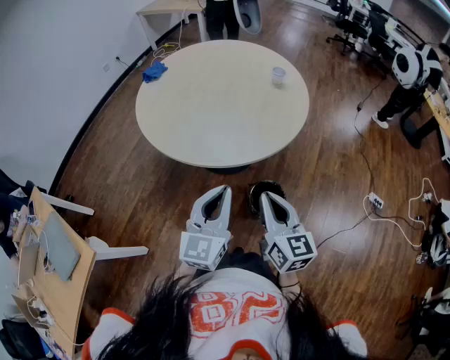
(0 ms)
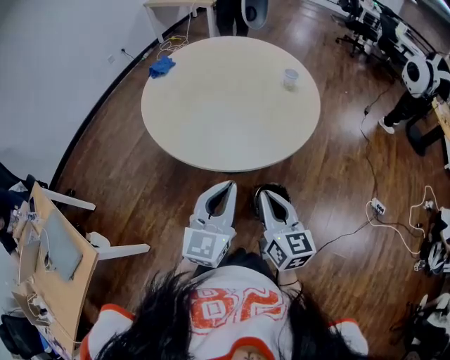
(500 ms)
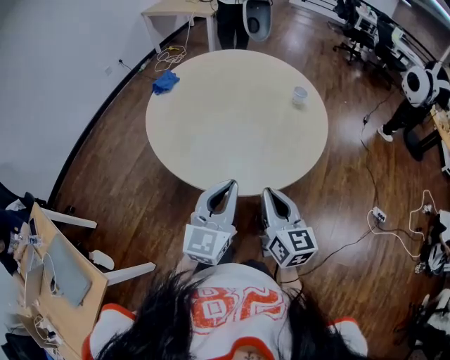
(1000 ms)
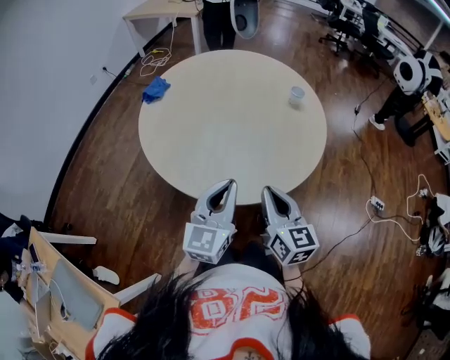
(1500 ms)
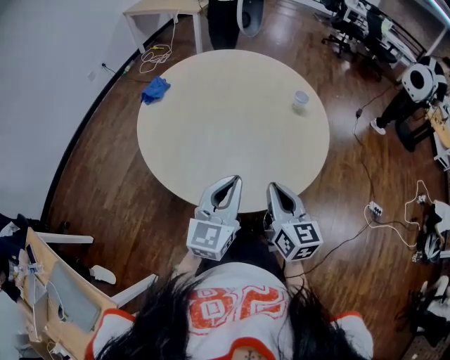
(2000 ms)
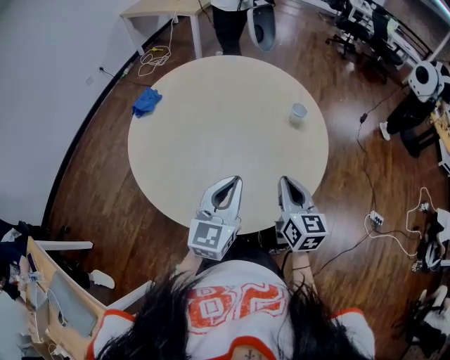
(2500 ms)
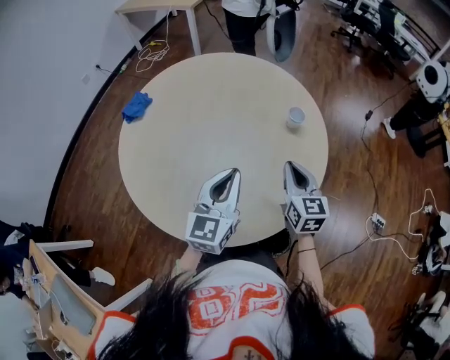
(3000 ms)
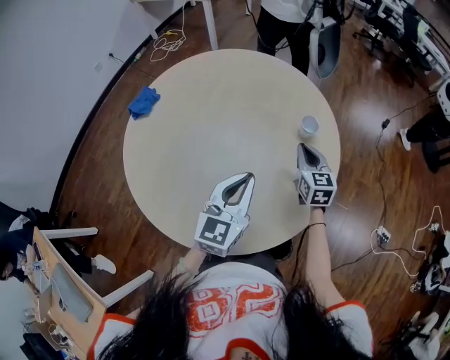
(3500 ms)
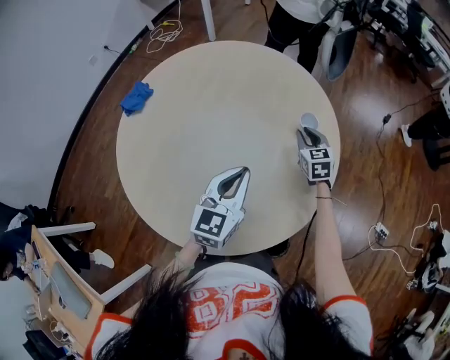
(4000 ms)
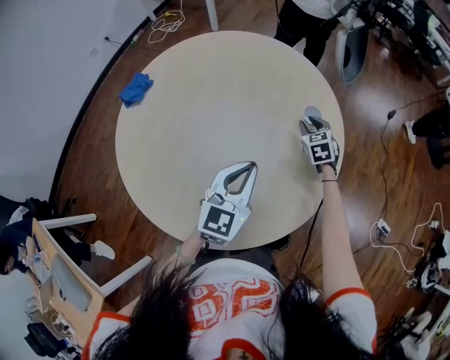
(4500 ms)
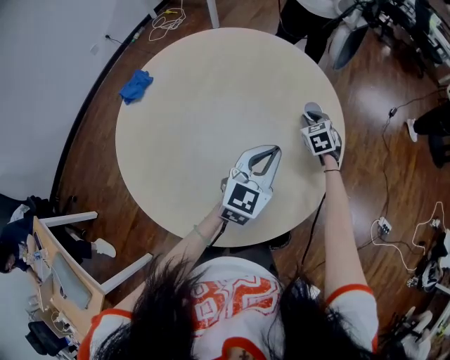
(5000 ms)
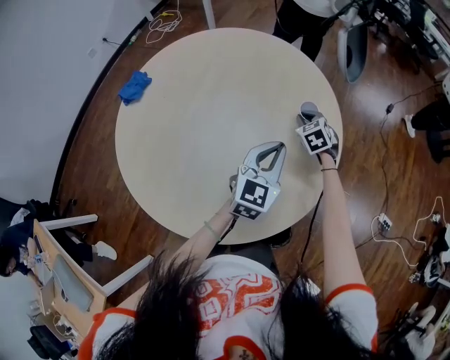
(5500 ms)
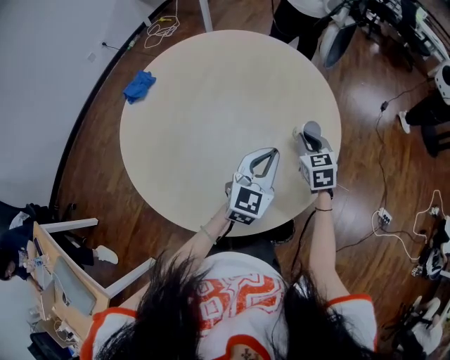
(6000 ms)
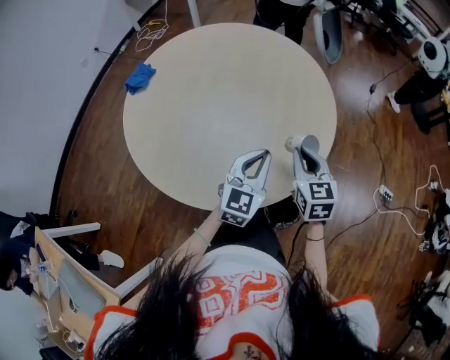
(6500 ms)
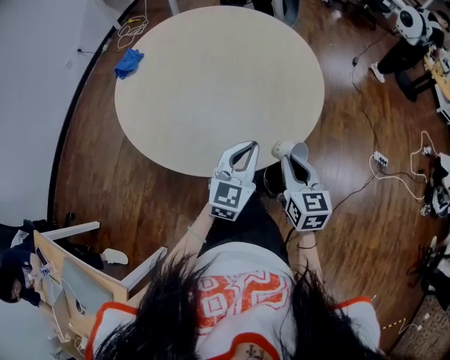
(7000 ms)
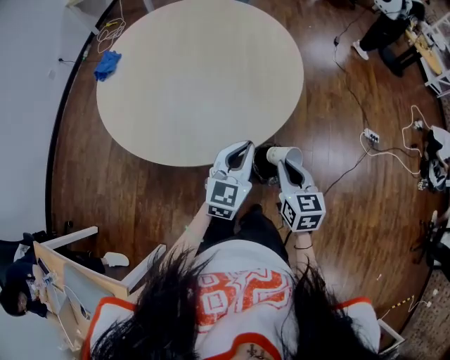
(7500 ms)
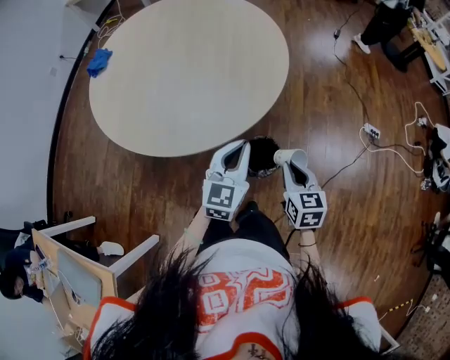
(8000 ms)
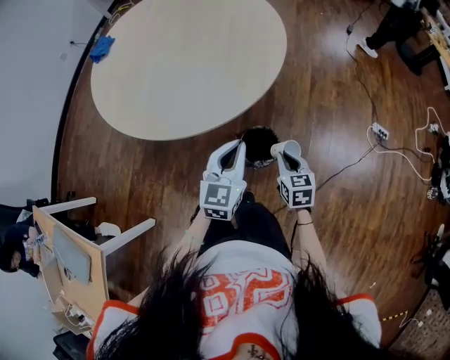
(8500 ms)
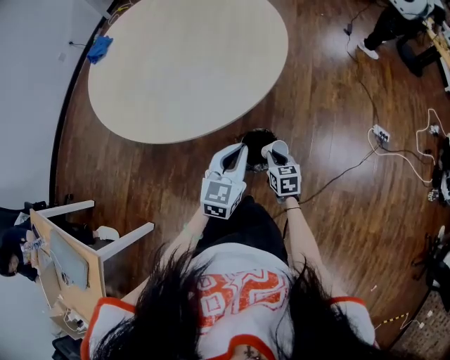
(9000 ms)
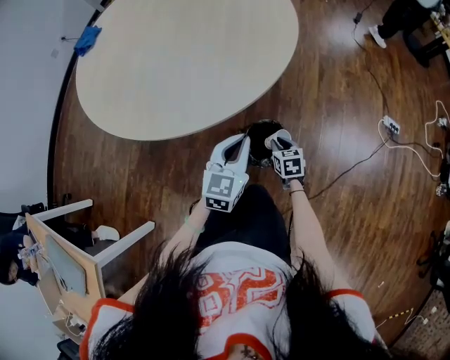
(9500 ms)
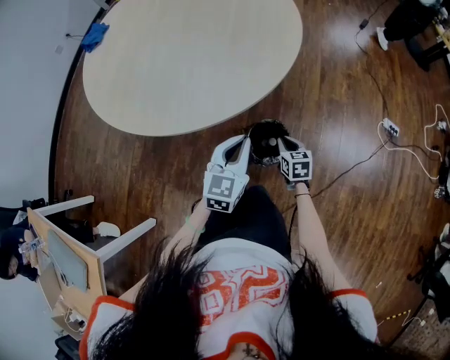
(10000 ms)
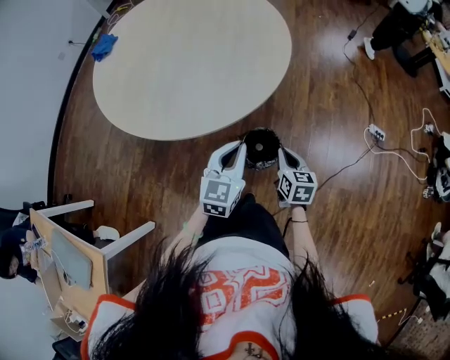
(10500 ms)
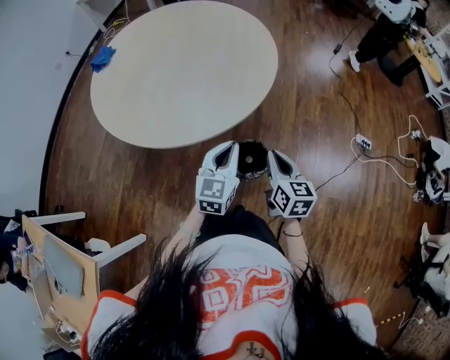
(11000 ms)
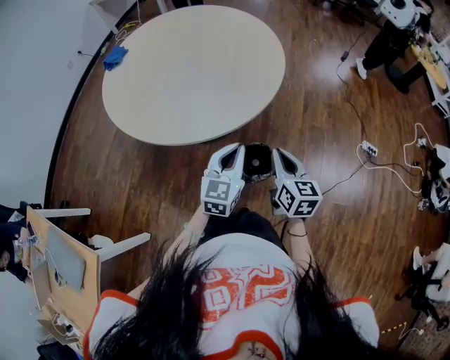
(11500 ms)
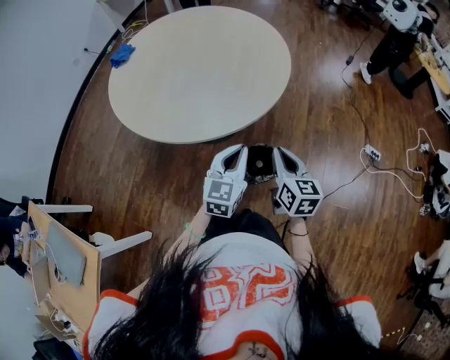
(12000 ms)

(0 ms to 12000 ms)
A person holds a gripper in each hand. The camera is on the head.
0 ms - 2000 ms: The two grippers go about 20 cm forward and to the left.
2000 ms - 4000 ms: The right gripper travels forward by roughly 40 cm, and changes its angle by approximately 30 degrees; the left gripper moves forward and to the right, some 20 cm.
4000 ms - 6000 ms: The left gripper is displaced to the right by approximately 5 cm; the right gripper heads backward, covering some 10 cm.
6000 ms - 8000 ms: The left gripper moves backward, roughly 25 cm. Meanwhile the right gripper heads backward, covering about 40 cm, and swivels about 30 degrees.
8000 ms - 10000 ms: The left gripper goes roughly 10 cm downward; the right gripper shifts roughly 25 cm downward.
10000 ms - 12000 ms: The right gripper heads upward, covering about 30 cm, and rotates approximately 30 degrees. The left gripper travels upward by roughly 10 cm.

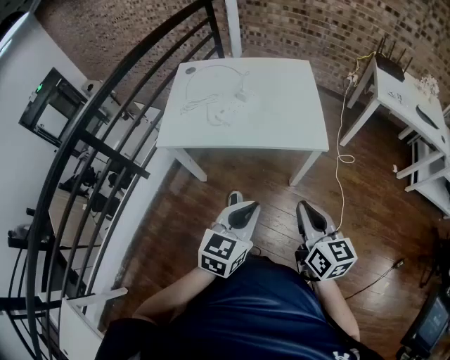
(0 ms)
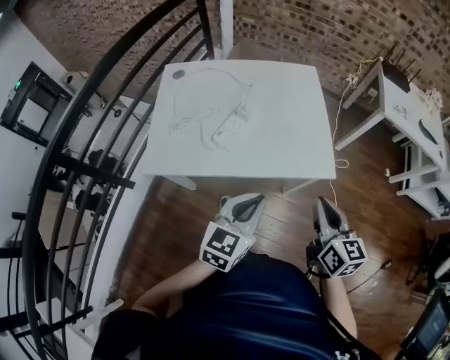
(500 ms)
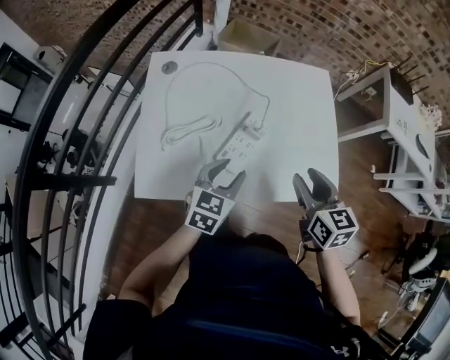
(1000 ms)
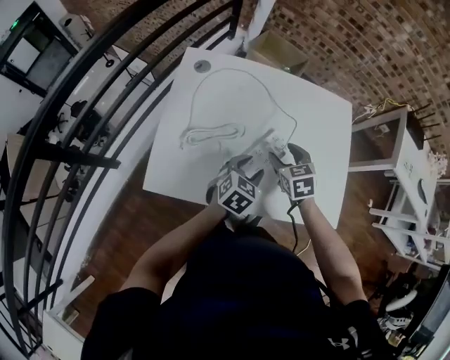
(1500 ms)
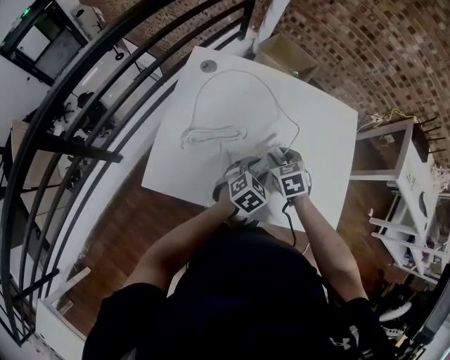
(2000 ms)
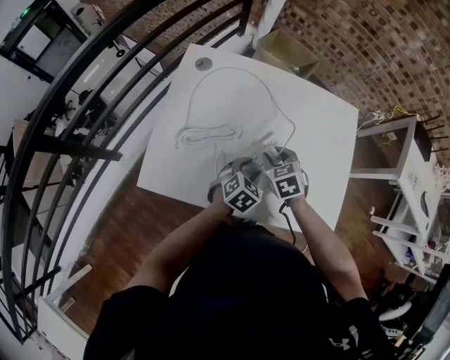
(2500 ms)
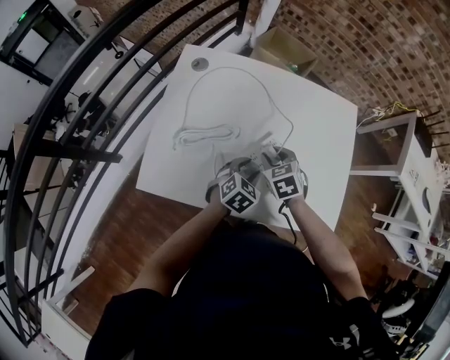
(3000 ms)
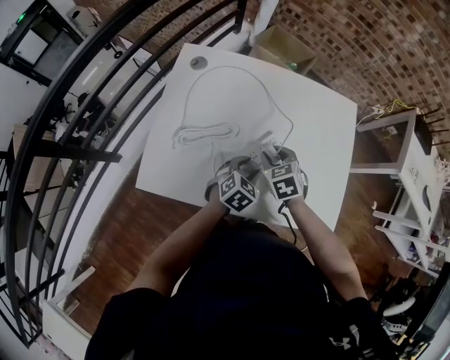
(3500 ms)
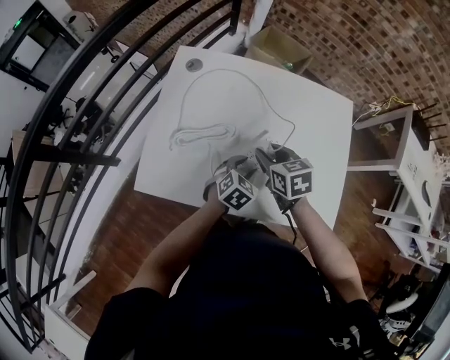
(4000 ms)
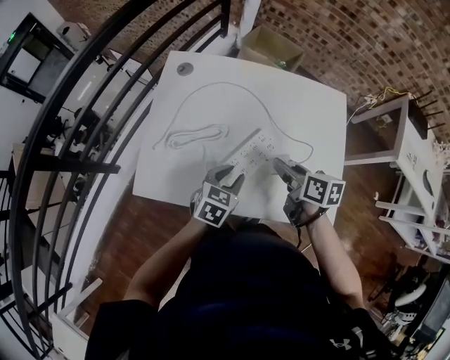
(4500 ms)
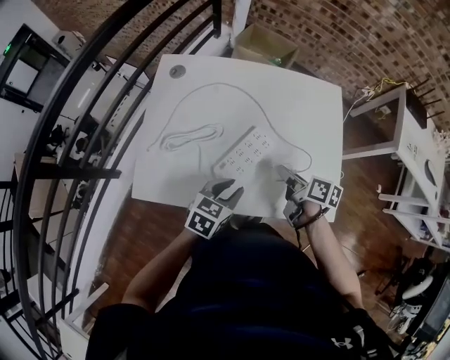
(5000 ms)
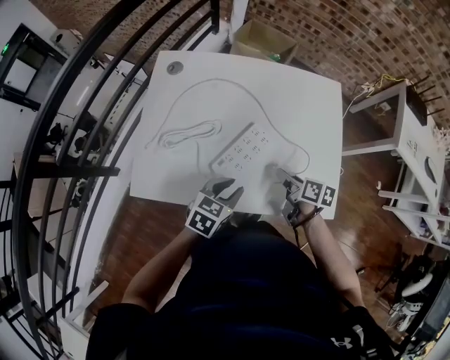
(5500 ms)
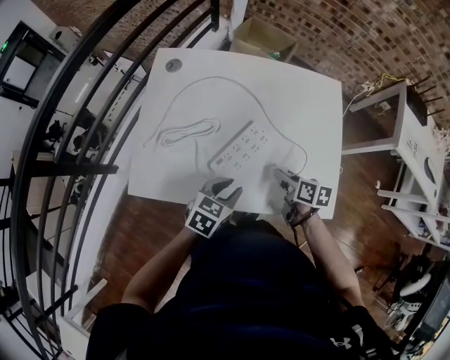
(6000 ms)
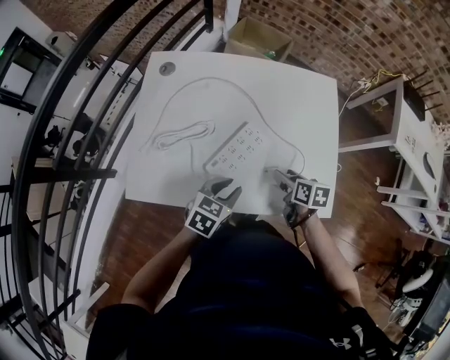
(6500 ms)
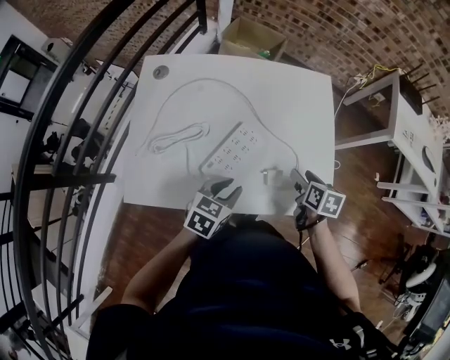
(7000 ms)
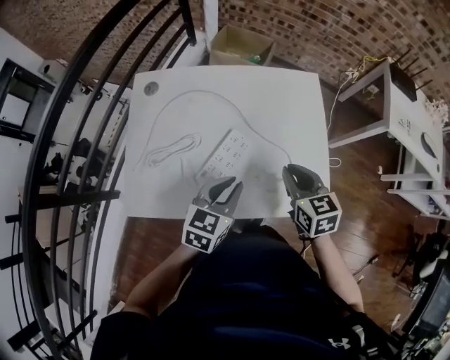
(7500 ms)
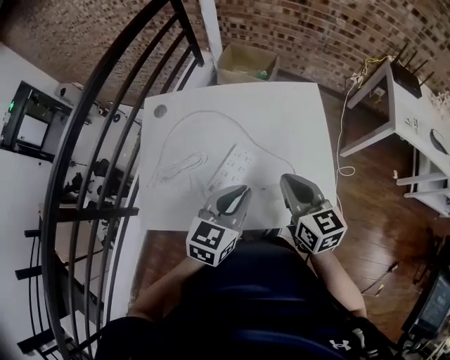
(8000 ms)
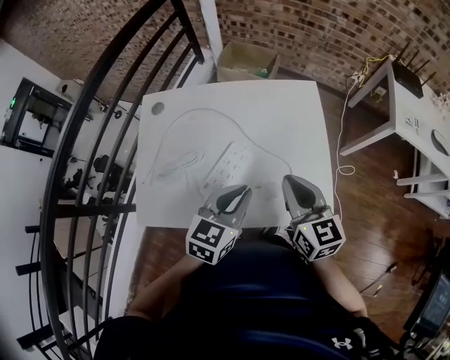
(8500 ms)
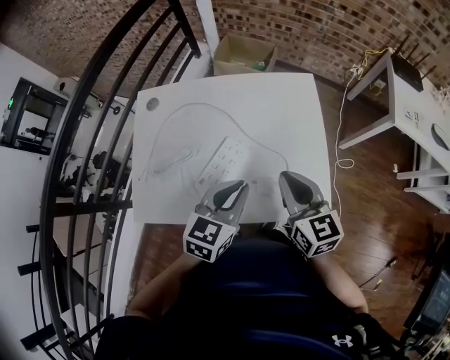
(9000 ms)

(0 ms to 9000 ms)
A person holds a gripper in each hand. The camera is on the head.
0 ms - 2000 ms: Both grippers are carried forward and to the left, some 50 cm. Both grippers travel together downward, approximately 20 cm. The right gripper tilts its fingers some 40 degrees downward, and opens up; the left gripper swivels about 30 degrees, and opens.
2000 ms - 4500 ms: The left gripper ends up some 5 cm from where it was; the right gripper heads upward and to the right, covering some 10 cm, and rolls clockwise, seen from behind, by about 50 degrees.
4500 ms - 7000 ms: The right gripper goes some 20 cm to the right and downward, turns by approximately 30 degrees, and opens, while the left gripper moves to the right, roughly 5 cm.
7000 ms - 9000 ms: The left gripper is displaced upward and to the right by some 15 cm; the right gripper goes some 20 cm upward, tilts its fingers about 30 degrees upward, and closes up.

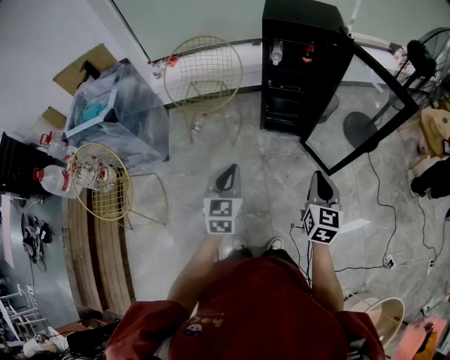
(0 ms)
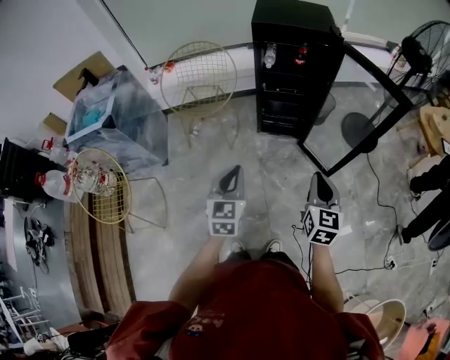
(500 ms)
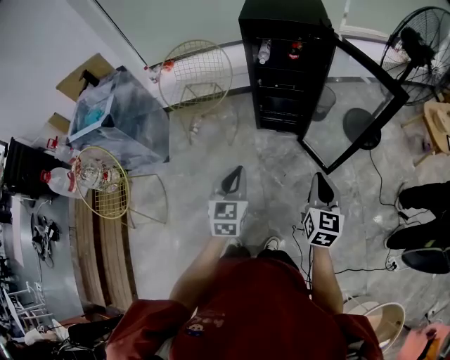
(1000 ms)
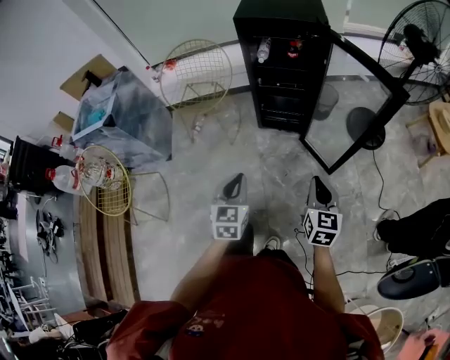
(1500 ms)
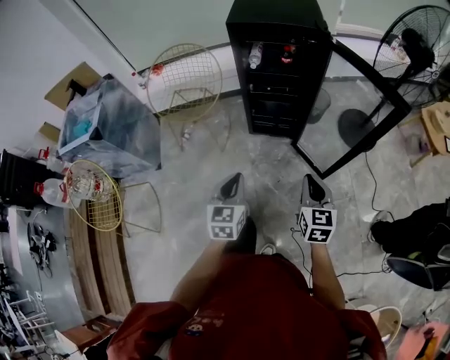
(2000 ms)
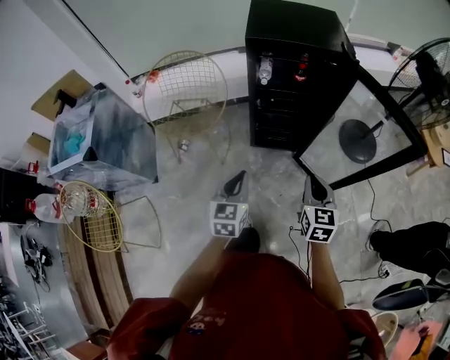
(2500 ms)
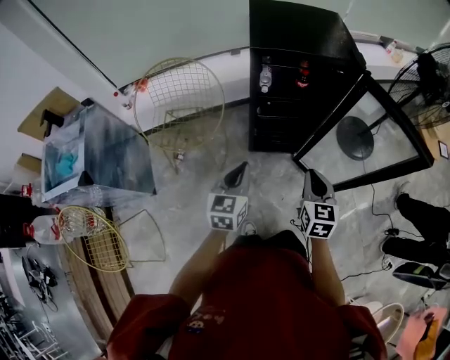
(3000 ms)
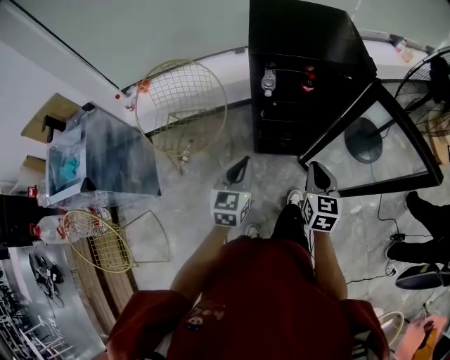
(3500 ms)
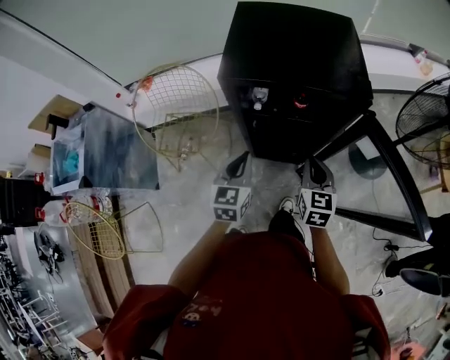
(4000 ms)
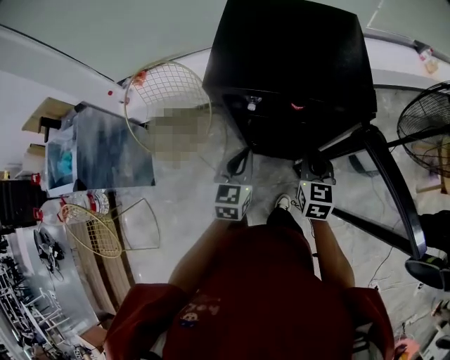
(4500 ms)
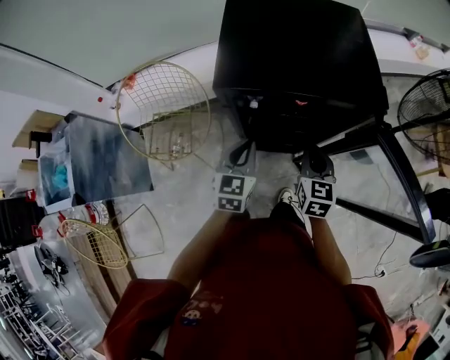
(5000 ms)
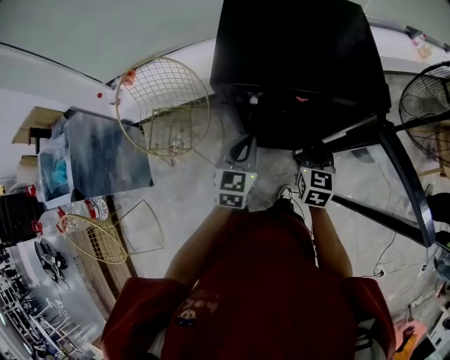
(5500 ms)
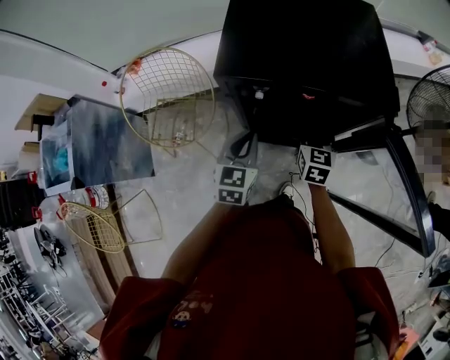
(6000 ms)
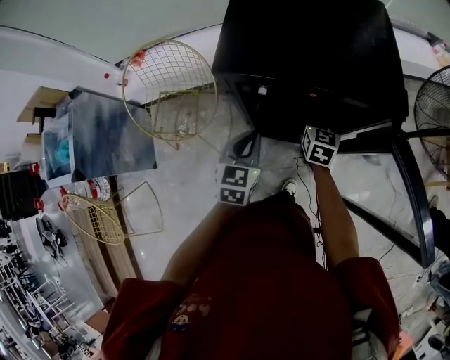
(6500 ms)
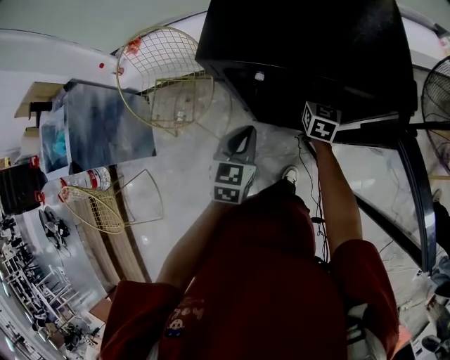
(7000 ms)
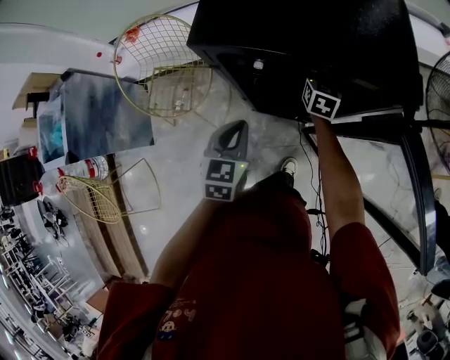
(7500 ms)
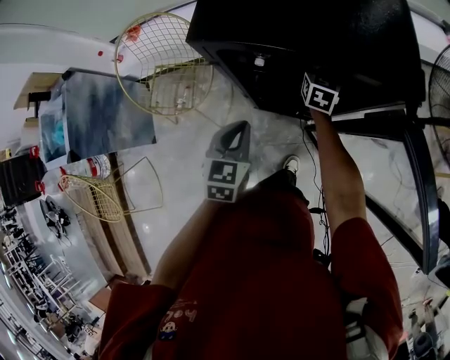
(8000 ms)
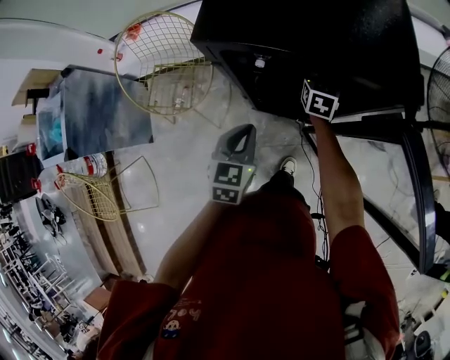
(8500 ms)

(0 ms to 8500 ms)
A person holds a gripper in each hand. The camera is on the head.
0 ms - 2000 ms: The left gripper moves to the right and forward, about 15 cm, while the right gripper moves to the right, forward and downward, roughly 15 cm.
2000 ms - 4000 ms: The two grippers go approximately 40 cm forward.
4000 ms - 6500 ms: The left gripper travels forward and downward by some 10 cm, while the right gripper moves forward and downward, about 20 cm, and opens.
6500 ms - 8500 ms: The right gripper moves forward, about 5 cm.
